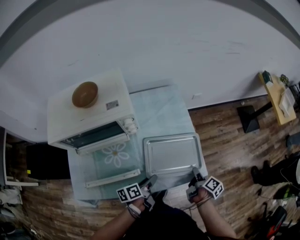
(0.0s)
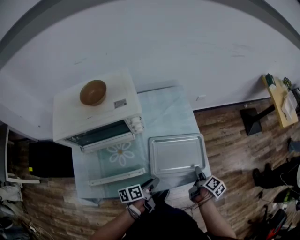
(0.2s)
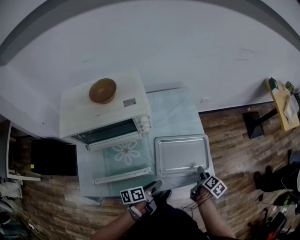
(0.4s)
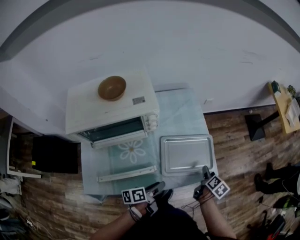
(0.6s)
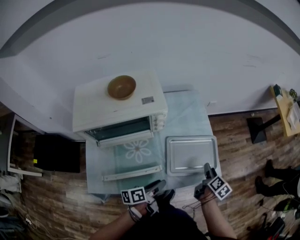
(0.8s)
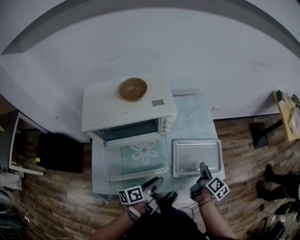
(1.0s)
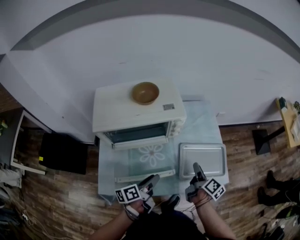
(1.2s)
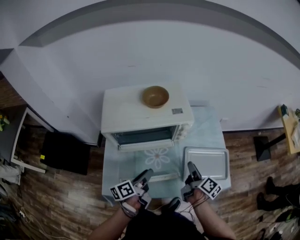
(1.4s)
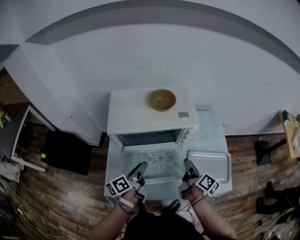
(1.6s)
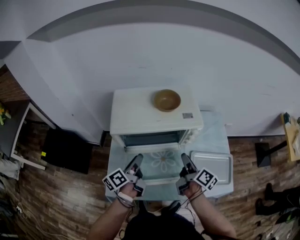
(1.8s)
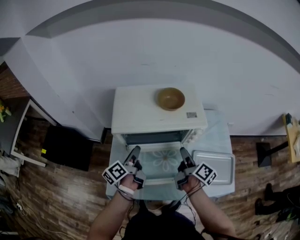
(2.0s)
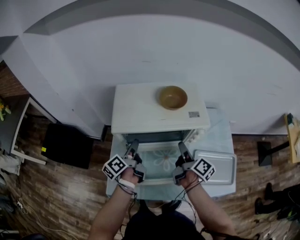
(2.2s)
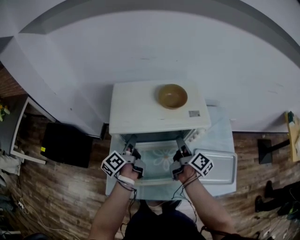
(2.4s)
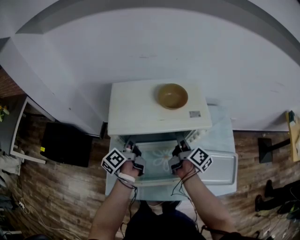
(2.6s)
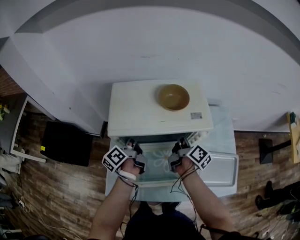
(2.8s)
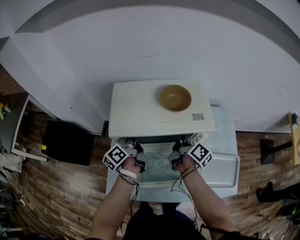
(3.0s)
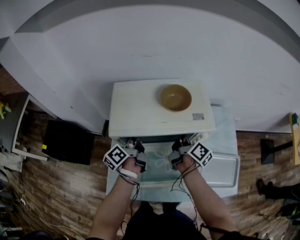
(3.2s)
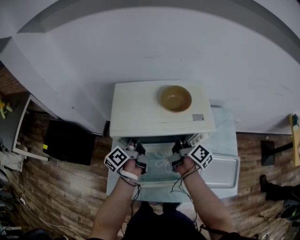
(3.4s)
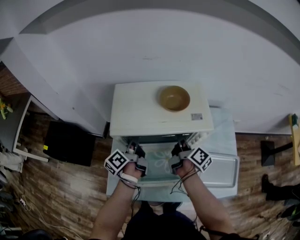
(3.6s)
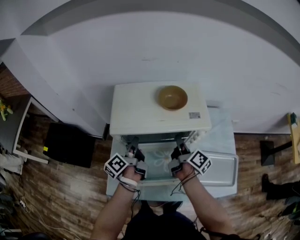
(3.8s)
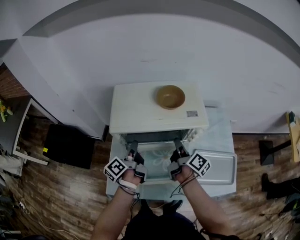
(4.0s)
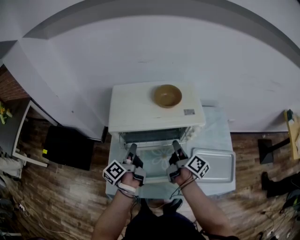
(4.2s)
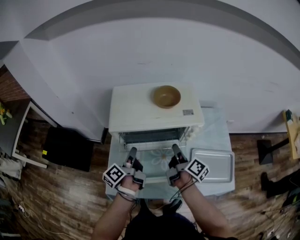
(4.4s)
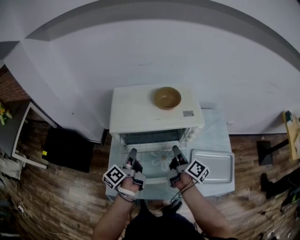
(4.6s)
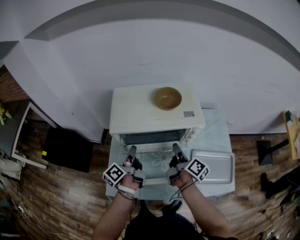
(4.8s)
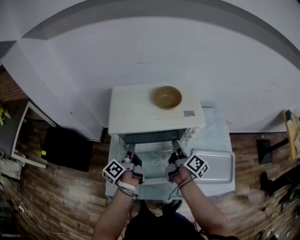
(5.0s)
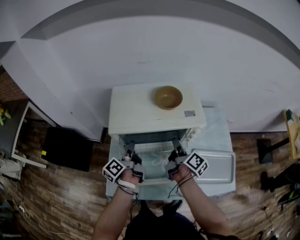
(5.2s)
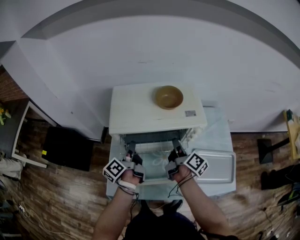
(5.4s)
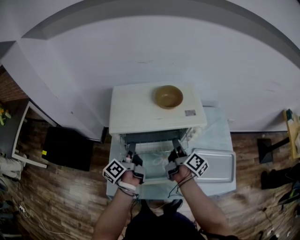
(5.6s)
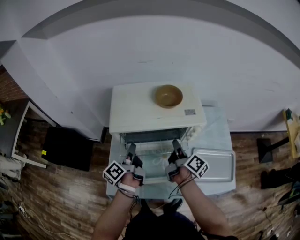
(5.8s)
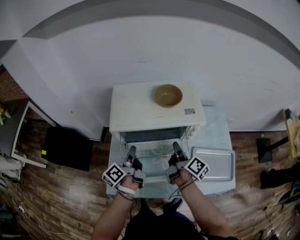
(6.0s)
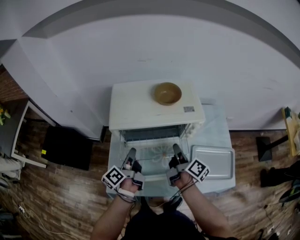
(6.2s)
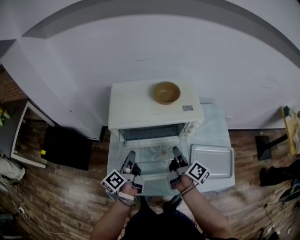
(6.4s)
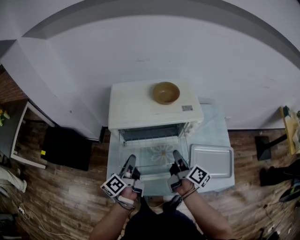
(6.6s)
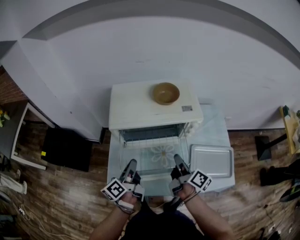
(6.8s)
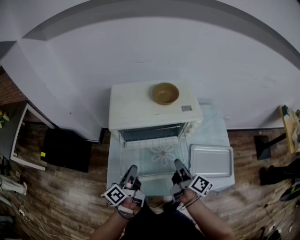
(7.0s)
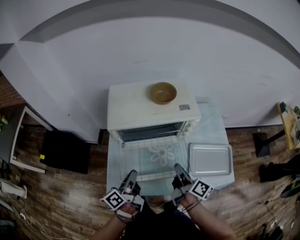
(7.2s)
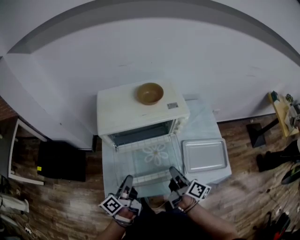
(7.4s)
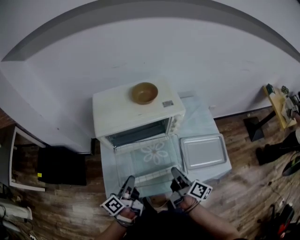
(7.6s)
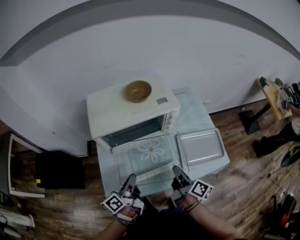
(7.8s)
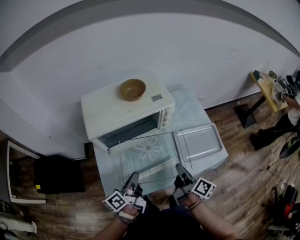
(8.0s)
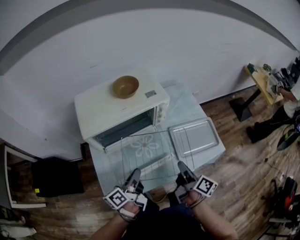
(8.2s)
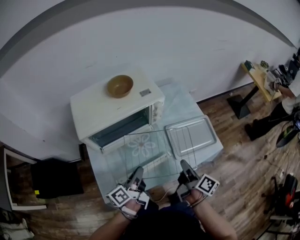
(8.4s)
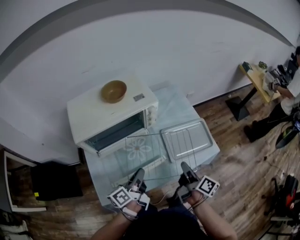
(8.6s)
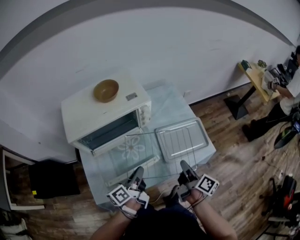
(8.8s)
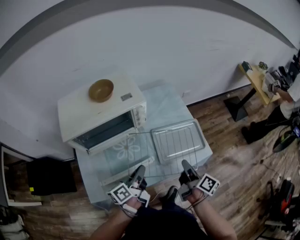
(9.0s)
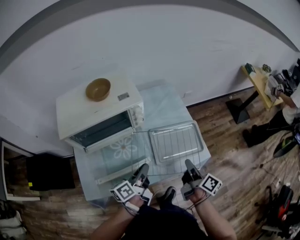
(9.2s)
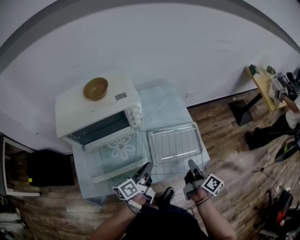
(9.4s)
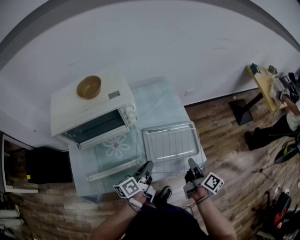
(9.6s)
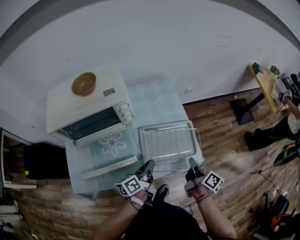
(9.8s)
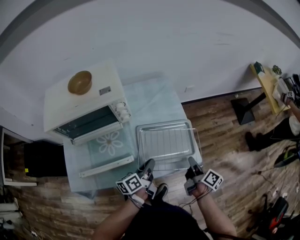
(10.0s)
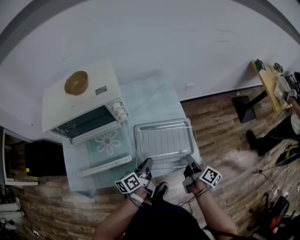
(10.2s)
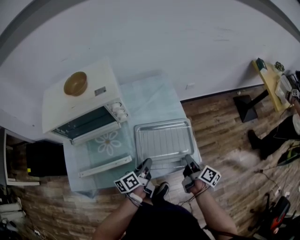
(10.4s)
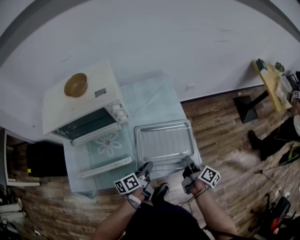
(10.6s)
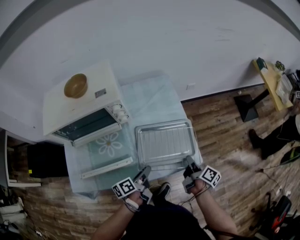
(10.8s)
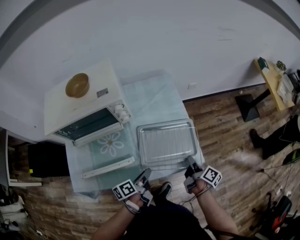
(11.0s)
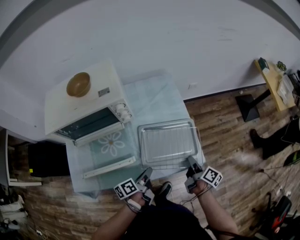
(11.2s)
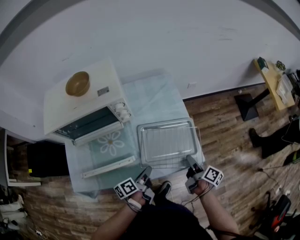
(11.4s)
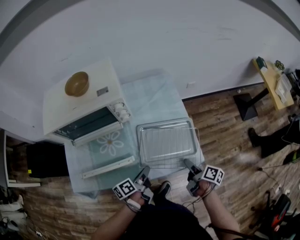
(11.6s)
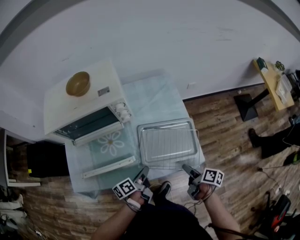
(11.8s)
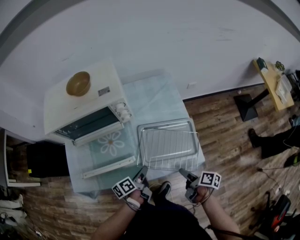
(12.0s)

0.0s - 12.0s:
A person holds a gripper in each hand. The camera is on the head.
0.0s - 1.6s: The right gripper changes place by approximately 35 cm, turns by roughly 30 degrees, and opens; the left gripper moves some 35 cm, and changes its angle by about 30 degrees.
1.6s - 3.0s: The two grippers go approximately 20 cm forward and to the left.
3.0s - 4.4s: Both grippers travel together backward, roughly 10 cm. The right gripper closes up. Meanwhile the left gripper closes up.
4.4s - 6.0s: There are only small adjustments of the grippers.
6.0s - 7.6s: Both grippers move backward, approximately 15 cm.
7.6s - 9.0s: Both grippers move to the right, approximately 20 cm. The right gripper turns by approximately 20 degrees.
9.0s - 10.4s: Both grippers move to the right, downward and forward, approximately 20 cm.
10.4s - 12.0s: The left gripper changes place by about 10 cm, and opens, then closes again. Meanwhile the right gripper travels backward by approximately 5 cm, turns by some 20 degrees, and opens up.

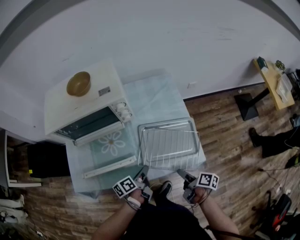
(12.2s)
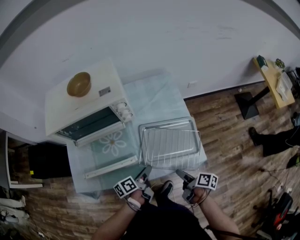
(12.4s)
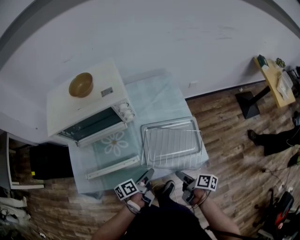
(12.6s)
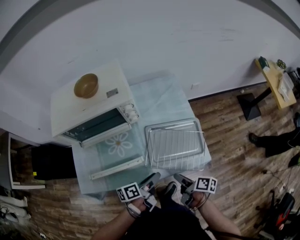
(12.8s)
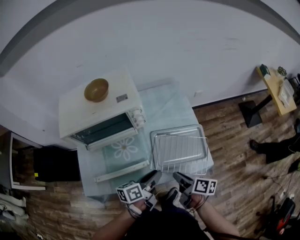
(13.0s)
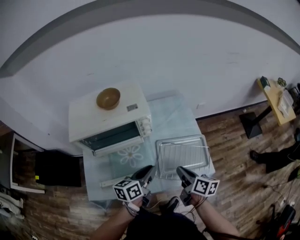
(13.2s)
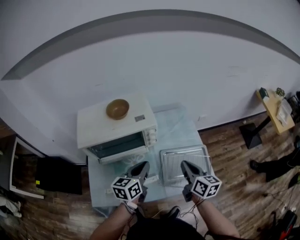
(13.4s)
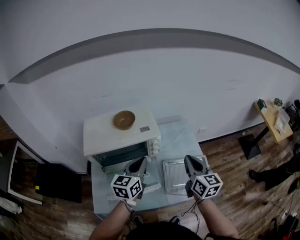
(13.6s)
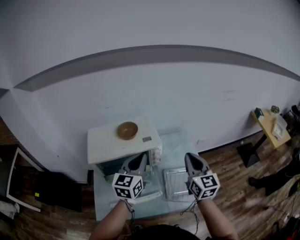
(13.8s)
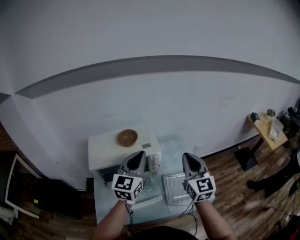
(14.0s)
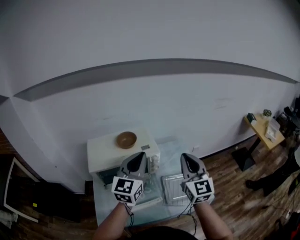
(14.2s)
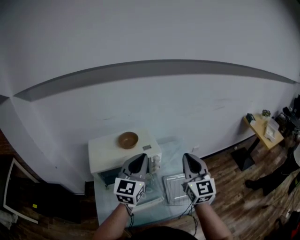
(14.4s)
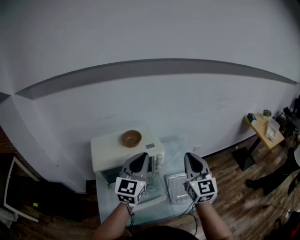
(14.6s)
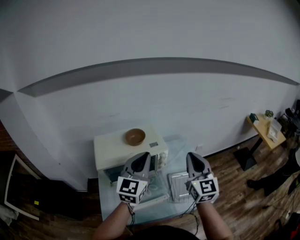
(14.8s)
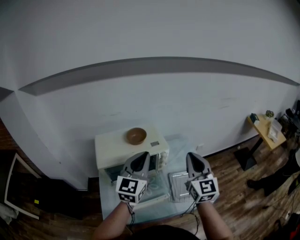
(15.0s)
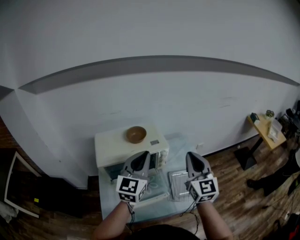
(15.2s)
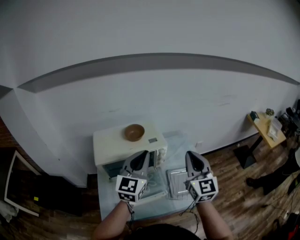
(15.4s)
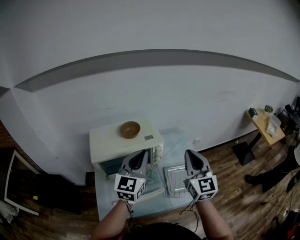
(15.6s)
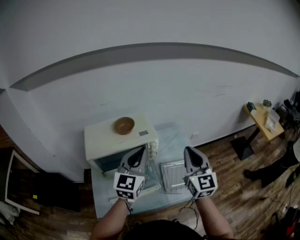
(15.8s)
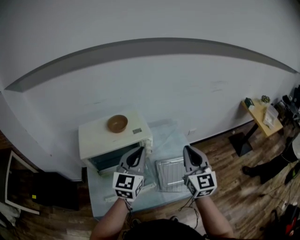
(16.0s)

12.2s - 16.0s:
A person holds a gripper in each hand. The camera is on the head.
12.2s - 13.4s: The left gripper travels upward and to the left by approximately 25 cm, rotates around the line of its fingers by approximately 50 degrees, clockwise from behind, and opens, then closes once more. Meanwhile the right gripper moves upward, forward and to the left, roughly 30 cm, rotates around the line of its fingers by some 50 degrees, counterclockwise from behind, and closes.
13.4s - 14.8s: Both grippers travel together upward, roughly 25 cm. The left gripper swivels approximately 40 degrees, while the right gripper changes its angle by approximately 50 degrees.
14.8s - 16.0s: The two grippers go roughly 5 cm to the right.

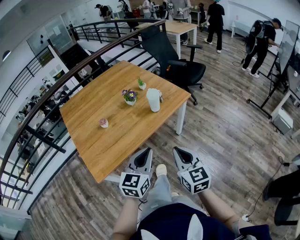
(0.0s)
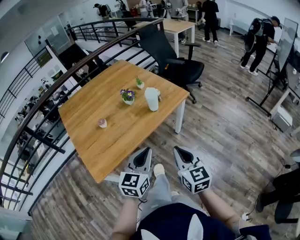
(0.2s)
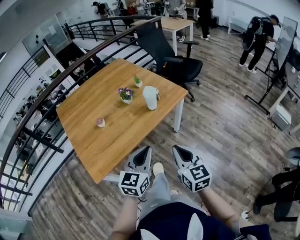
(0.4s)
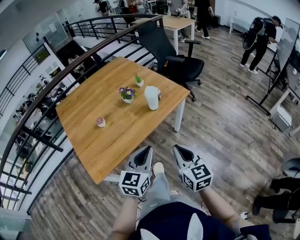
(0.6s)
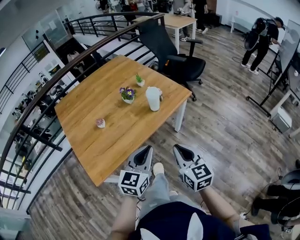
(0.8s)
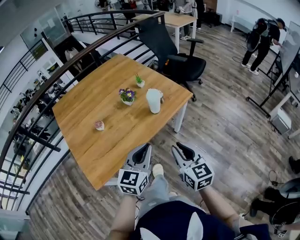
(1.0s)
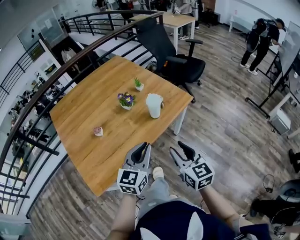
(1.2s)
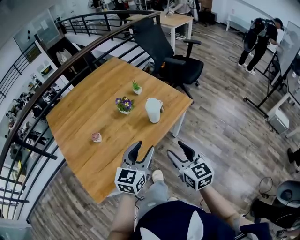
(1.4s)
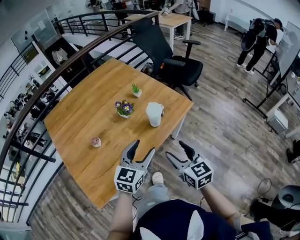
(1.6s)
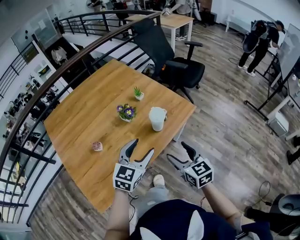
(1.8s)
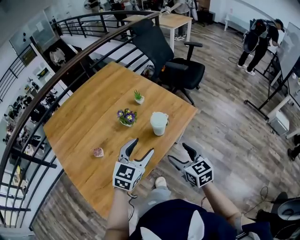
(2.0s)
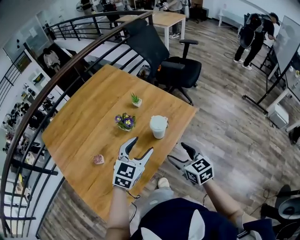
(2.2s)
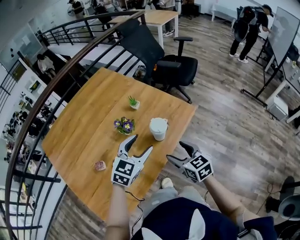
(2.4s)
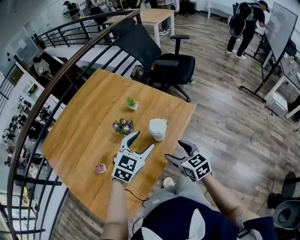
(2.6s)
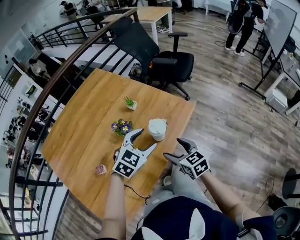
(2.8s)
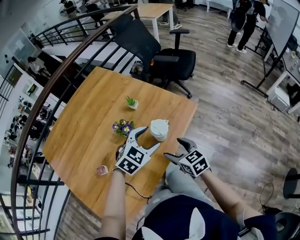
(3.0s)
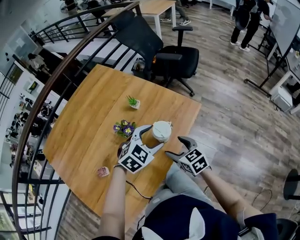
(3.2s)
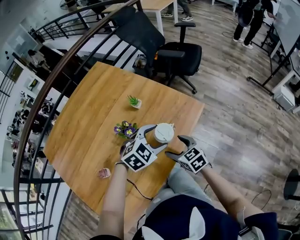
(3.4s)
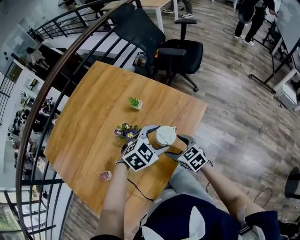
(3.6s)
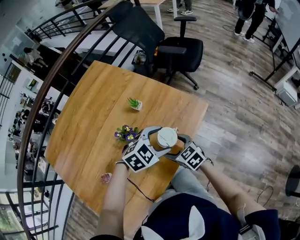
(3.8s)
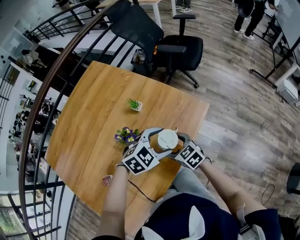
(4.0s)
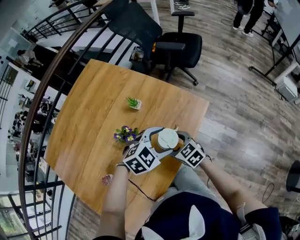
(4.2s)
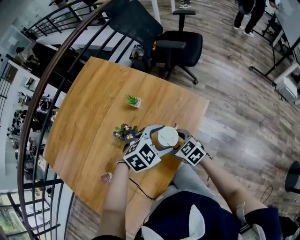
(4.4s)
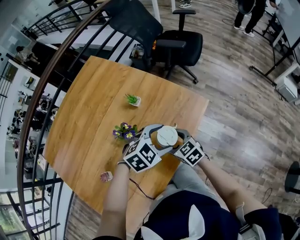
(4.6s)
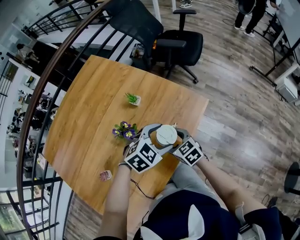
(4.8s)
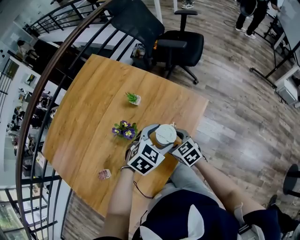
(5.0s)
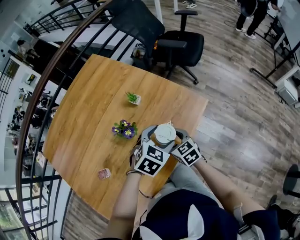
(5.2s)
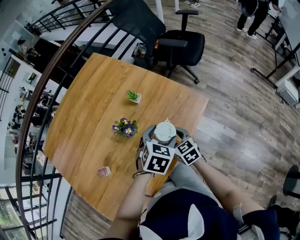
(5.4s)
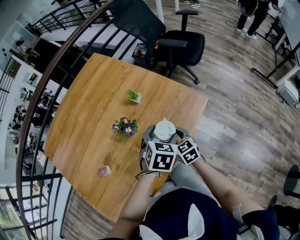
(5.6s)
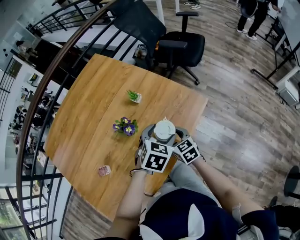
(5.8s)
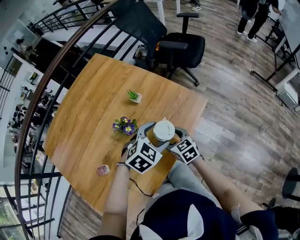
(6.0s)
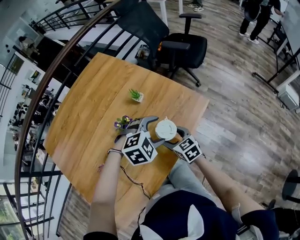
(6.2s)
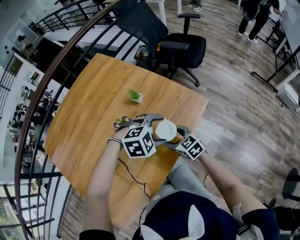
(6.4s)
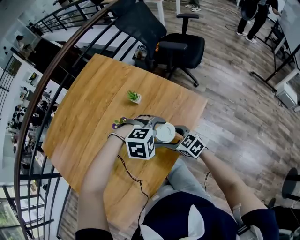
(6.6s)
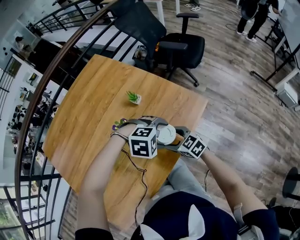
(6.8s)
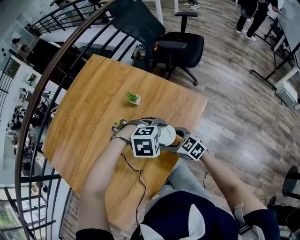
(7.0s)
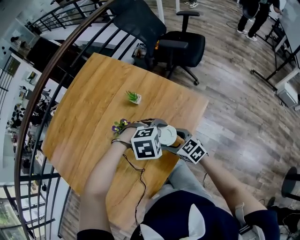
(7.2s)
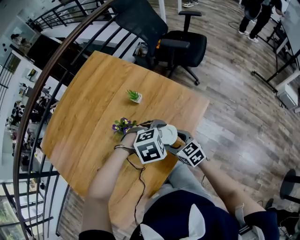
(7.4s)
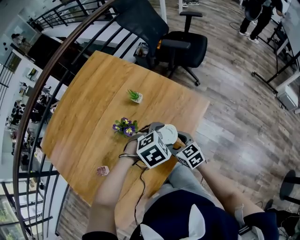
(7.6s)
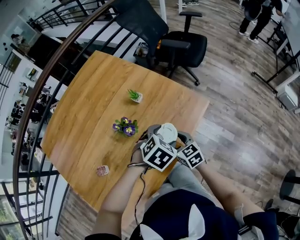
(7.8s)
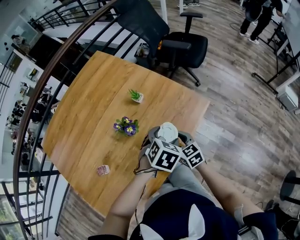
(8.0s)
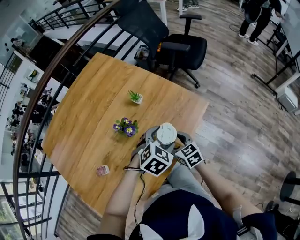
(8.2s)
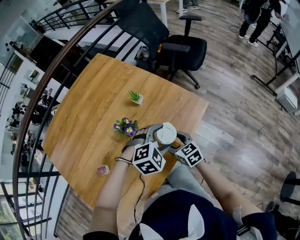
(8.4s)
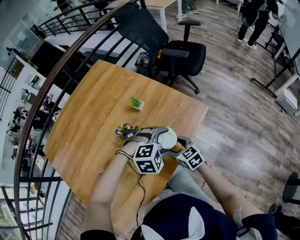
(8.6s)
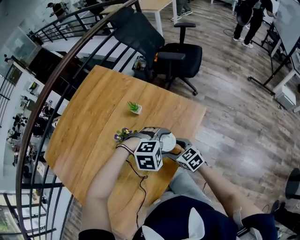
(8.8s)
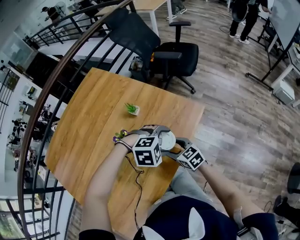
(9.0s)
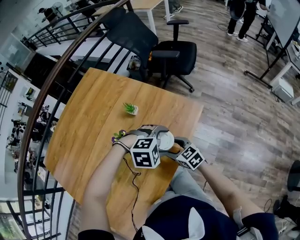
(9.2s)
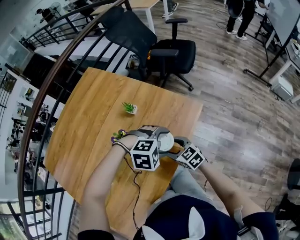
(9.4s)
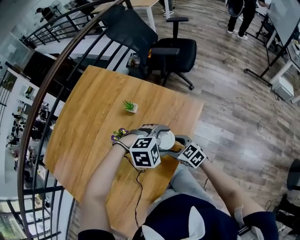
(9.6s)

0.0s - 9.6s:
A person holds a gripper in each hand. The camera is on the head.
0.0s - 1.6s: Both grippers move forward, approximately 20 cm. The left gripper opens its fingers; the right gripper opens up.
1.6s - 3.2s: The left gripper heads forward, covering roughly 20 cm, and rotates approximately 50 degrees. The right gripper travels forward and downward by about 20 cm.
3.2s - 4.8s: The right gripper heads downward and forward, covering about 10 cm.
4.8s - 6.4s: The left gripper swivels approximately 20 degrees.
6.4s - 8.0s: The left gripper rolls counterclockwise, seen from behind, by about 50 degrees.
8.0s - 9.6s: The left gripper rotates around the line of its fingers by about 60 degrees, clockwise from behind.
